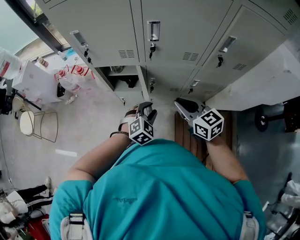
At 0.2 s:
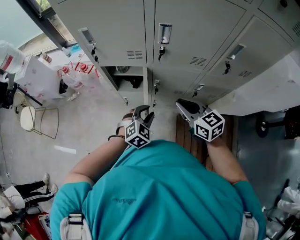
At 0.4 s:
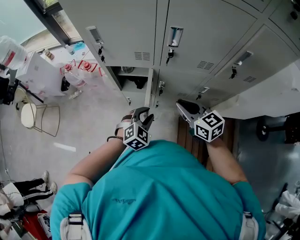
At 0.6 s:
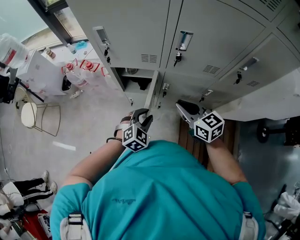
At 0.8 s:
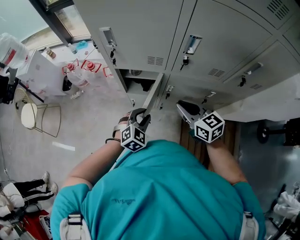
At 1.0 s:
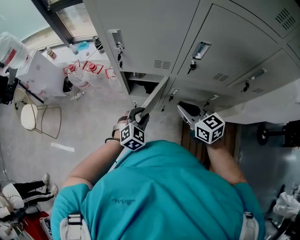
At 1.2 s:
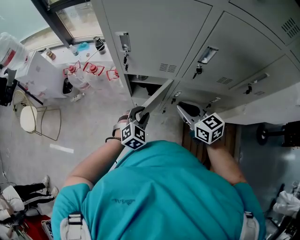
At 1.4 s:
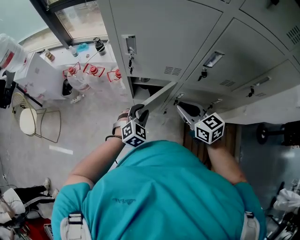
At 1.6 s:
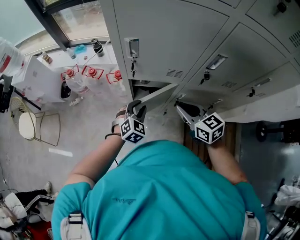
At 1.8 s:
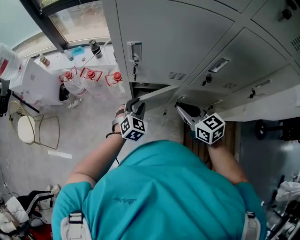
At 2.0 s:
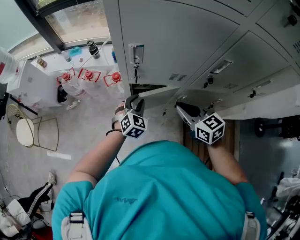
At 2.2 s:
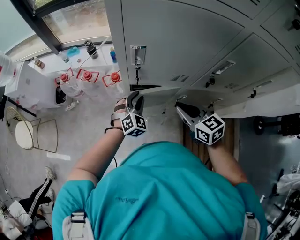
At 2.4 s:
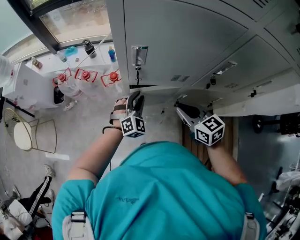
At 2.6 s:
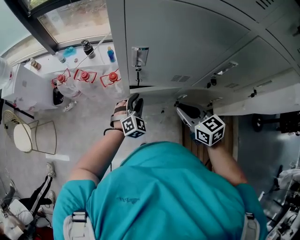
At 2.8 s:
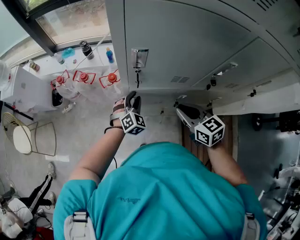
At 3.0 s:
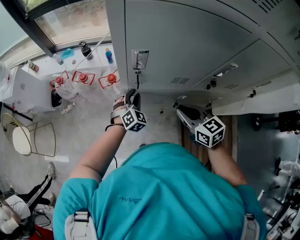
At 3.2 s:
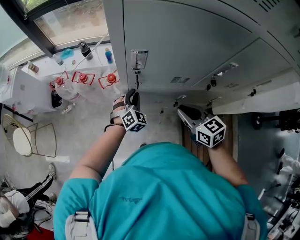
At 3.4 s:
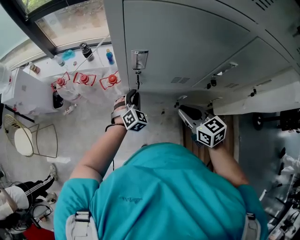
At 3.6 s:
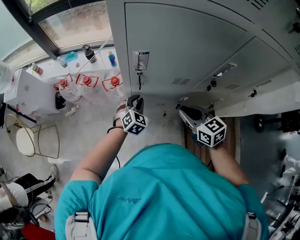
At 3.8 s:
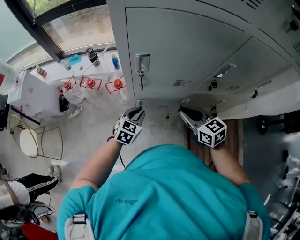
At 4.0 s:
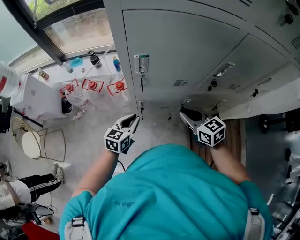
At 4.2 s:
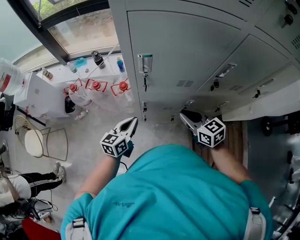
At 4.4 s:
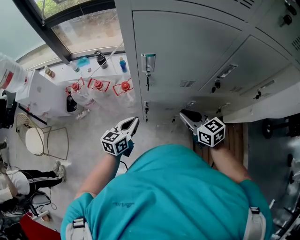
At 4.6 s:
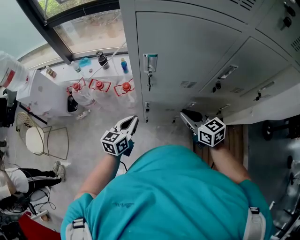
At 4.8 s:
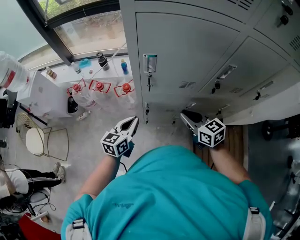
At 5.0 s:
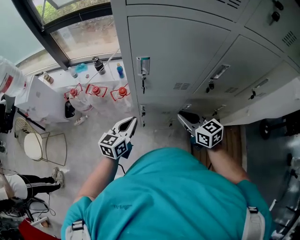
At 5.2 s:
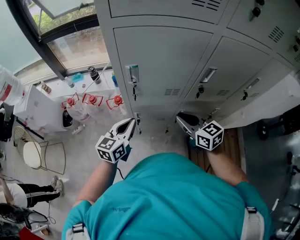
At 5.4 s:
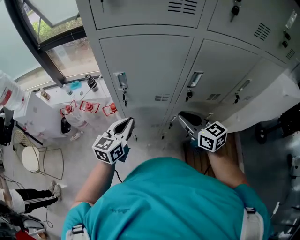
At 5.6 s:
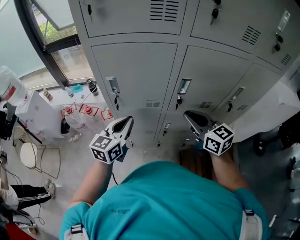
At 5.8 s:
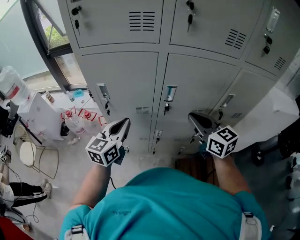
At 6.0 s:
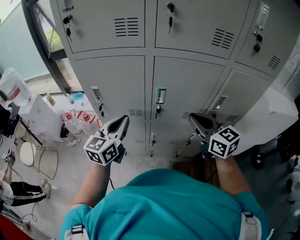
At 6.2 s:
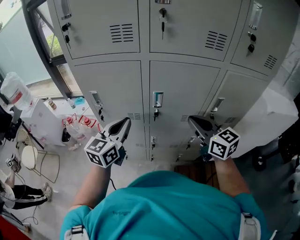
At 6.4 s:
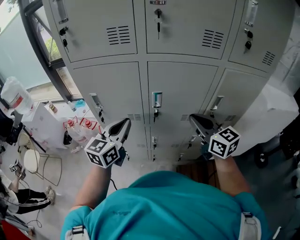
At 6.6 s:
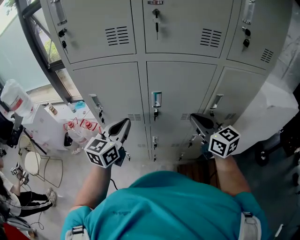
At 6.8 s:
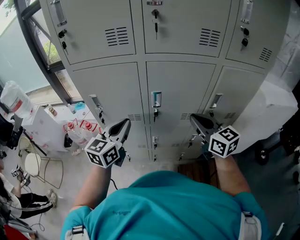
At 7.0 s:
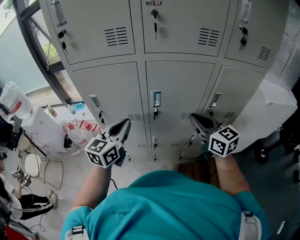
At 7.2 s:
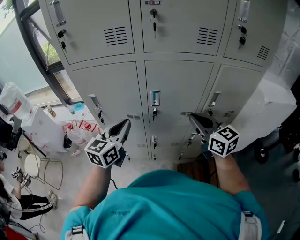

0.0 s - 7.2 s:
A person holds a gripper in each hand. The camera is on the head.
0.0 s - 1.4 s: Both grippers move to the left and forward, some 20 cm.
1.4 s - 2.8 s: The right gripper shifts by approximately 5 cm. Meanwhile the left gripper heads forward, covering approximately 15 cm.
2.8 s - 4.4 s: The left gripper travels backward, to the left and upward by approximately 15 cm, rotates around the line of its fingers by roughly 60 degrees, counterclockwise from behind, and closes.
4.4 s - 5.8 s: The left gripper goes roughly 30 cm upward and to the right, and rotates approximately 20 degrees. Meanwhile the right gripper travels to the right and upward by approximately 30 cm.
5.8 s - 7.2 s: The right gripper travels to the right by about 5 cm. The left gripper moves to the right and upward, some 10 cm.

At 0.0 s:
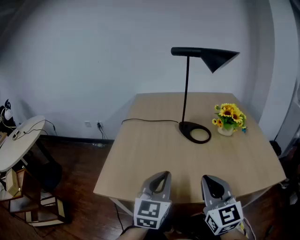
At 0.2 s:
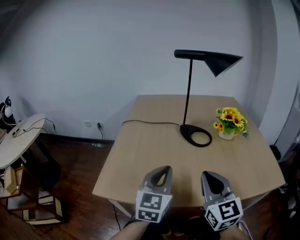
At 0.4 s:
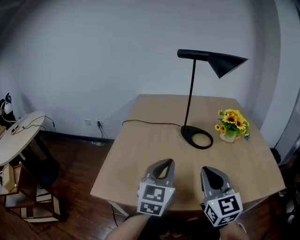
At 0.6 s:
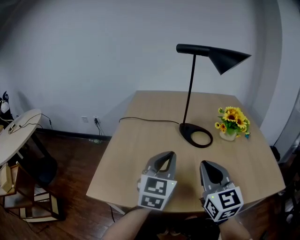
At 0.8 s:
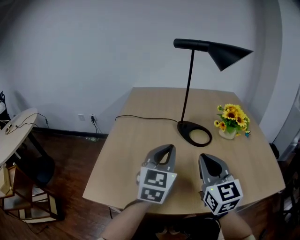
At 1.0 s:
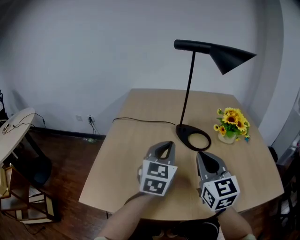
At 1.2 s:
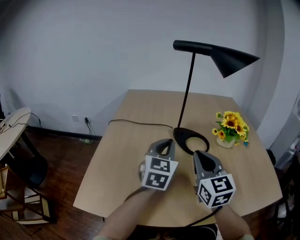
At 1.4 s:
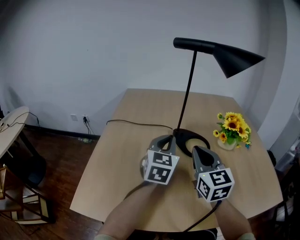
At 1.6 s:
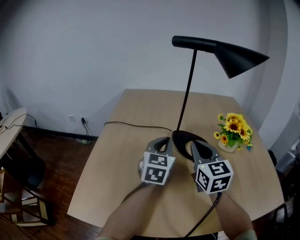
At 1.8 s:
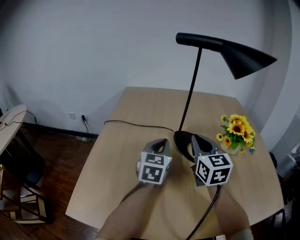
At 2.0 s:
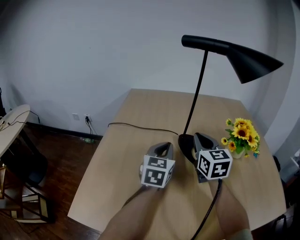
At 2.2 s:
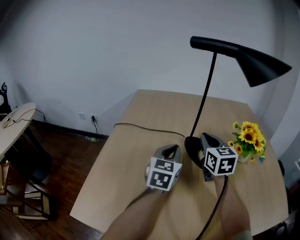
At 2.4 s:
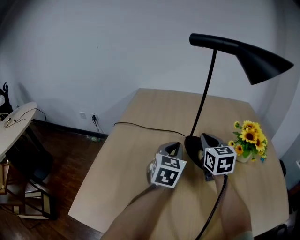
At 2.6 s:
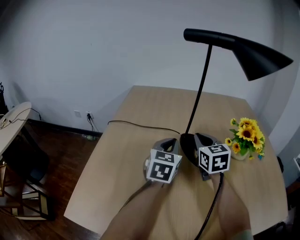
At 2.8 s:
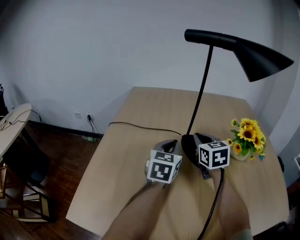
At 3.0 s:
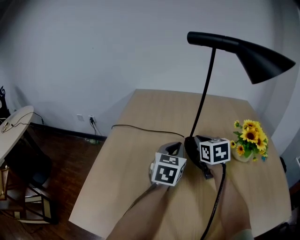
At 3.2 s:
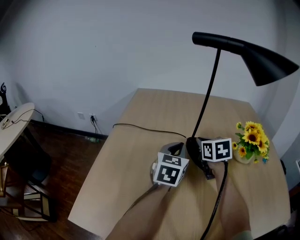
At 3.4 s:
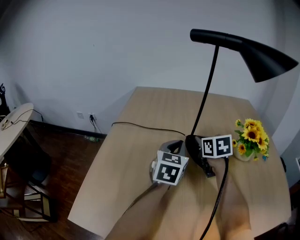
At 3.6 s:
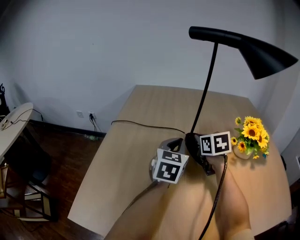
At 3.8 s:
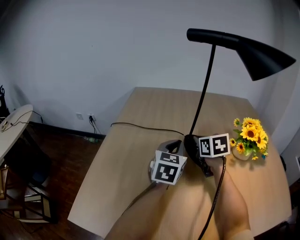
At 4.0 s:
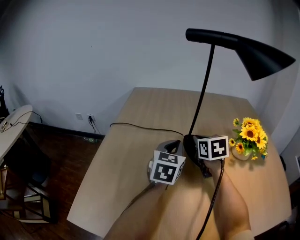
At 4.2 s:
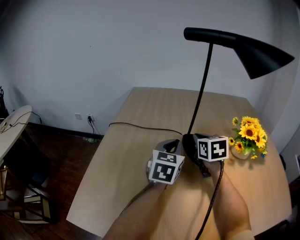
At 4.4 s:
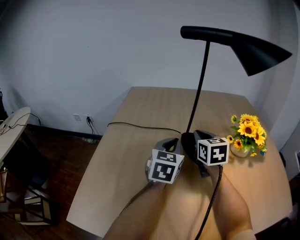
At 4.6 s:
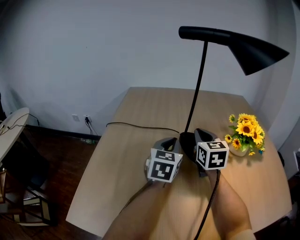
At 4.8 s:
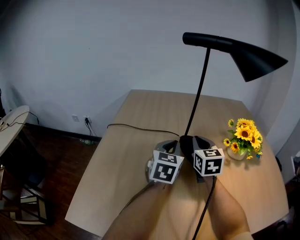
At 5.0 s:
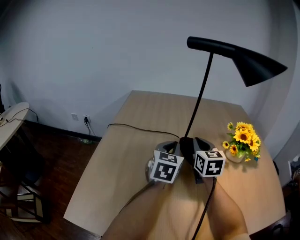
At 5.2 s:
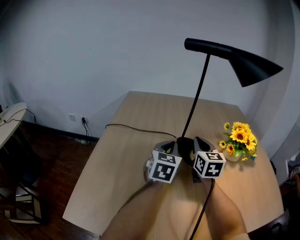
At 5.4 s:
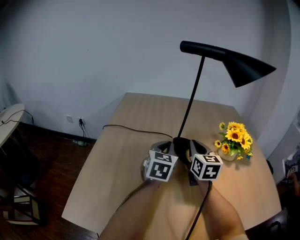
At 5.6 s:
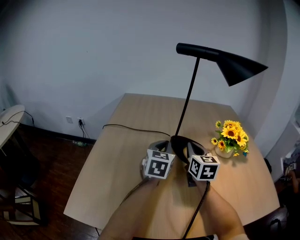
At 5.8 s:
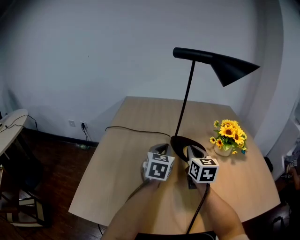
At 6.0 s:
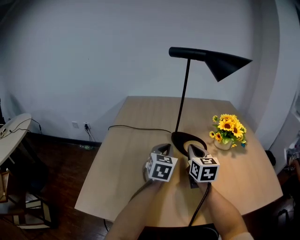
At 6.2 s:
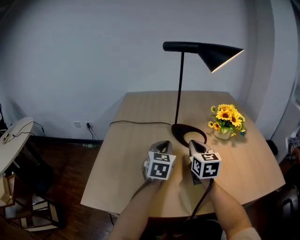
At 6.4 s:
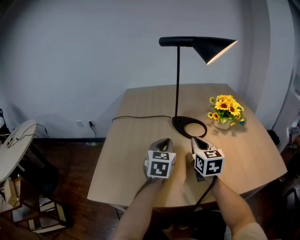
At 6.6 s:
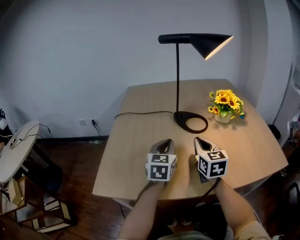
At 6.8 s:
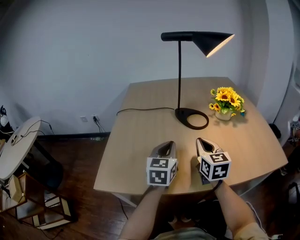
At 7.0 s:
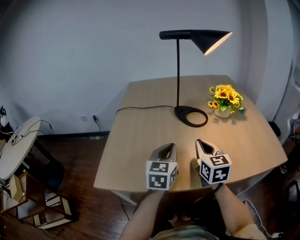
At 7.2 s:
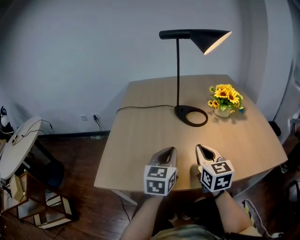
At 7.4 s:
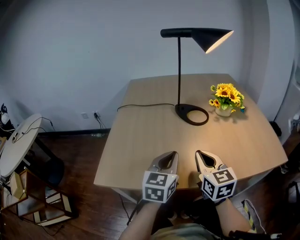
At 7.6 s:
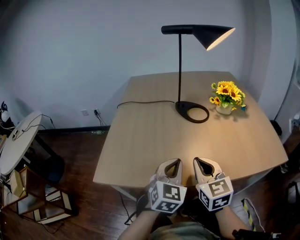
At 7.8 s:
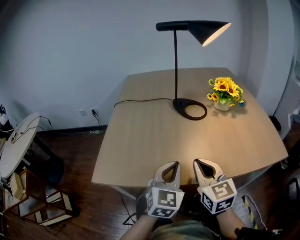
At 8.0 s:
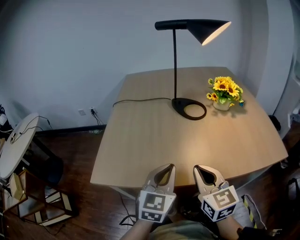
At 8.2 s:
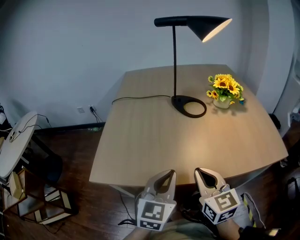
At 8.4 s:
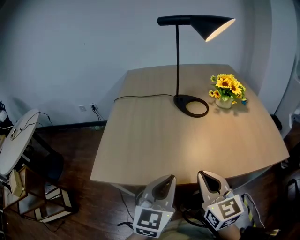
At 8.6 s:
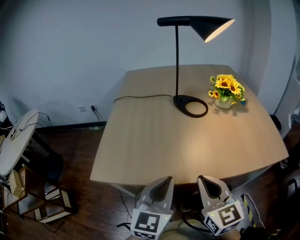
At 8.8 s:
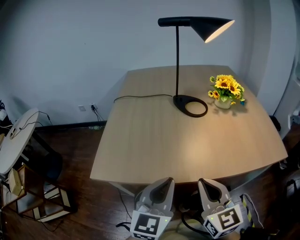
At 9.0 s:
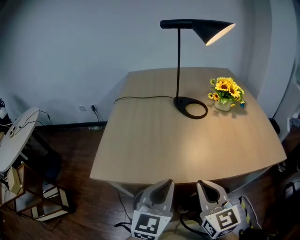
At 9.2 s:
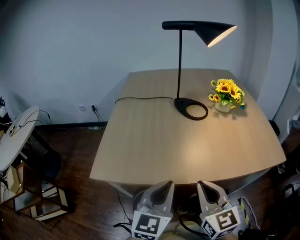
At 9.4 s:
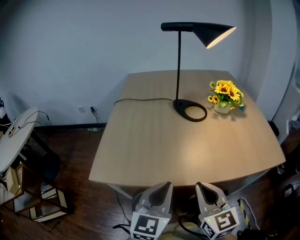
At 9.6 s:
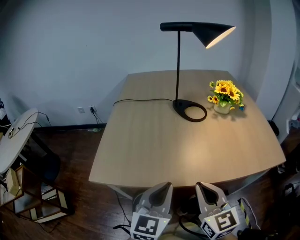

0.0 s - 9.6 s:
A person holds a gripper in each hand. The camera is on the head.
0.0 s - 1.6 s: The grippers both shift forward by approximately 25 cm.
1.6 s - 3.2 s: The right gripper moves forward and downward, roughly 15 cm, and swivels roughly 30 degrees.
4.8 s - 6.4 s: Both grippers move backward, approximately 15 cm.
6.4 s - 8.0 s: The two grippers go some 20 cm backward.
8.0 s - 9.6 s: The two grippers go some 5 cm backward.

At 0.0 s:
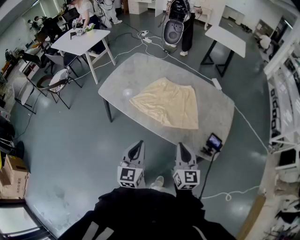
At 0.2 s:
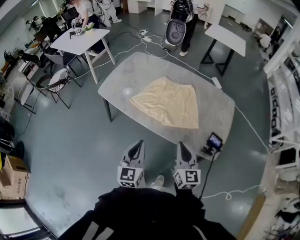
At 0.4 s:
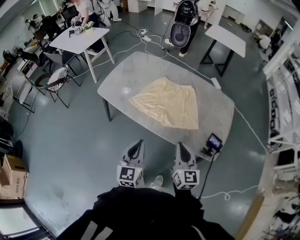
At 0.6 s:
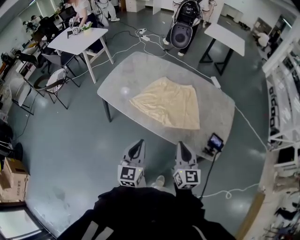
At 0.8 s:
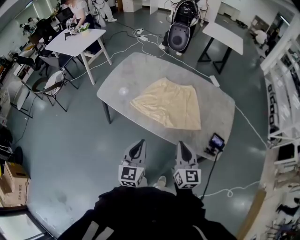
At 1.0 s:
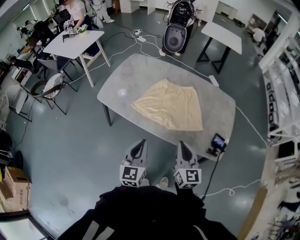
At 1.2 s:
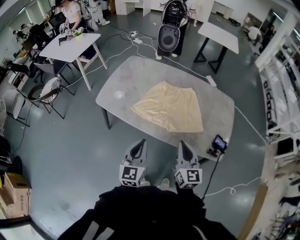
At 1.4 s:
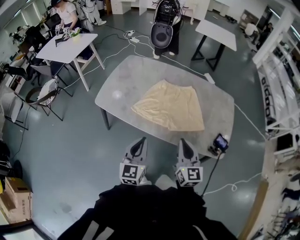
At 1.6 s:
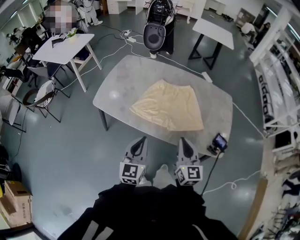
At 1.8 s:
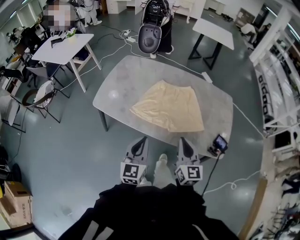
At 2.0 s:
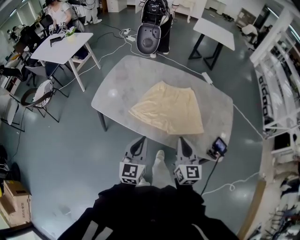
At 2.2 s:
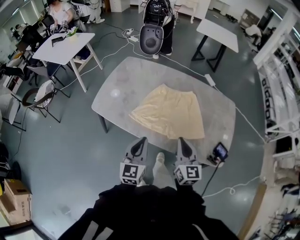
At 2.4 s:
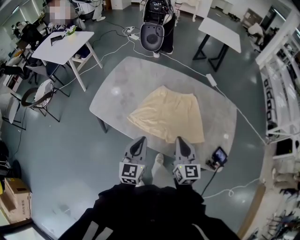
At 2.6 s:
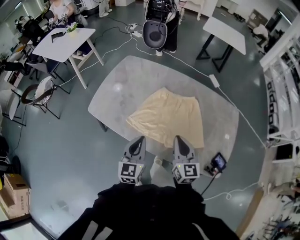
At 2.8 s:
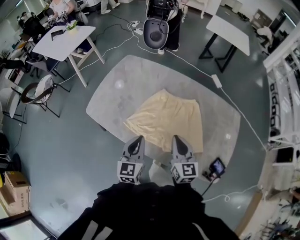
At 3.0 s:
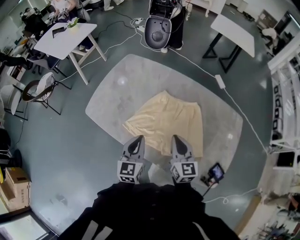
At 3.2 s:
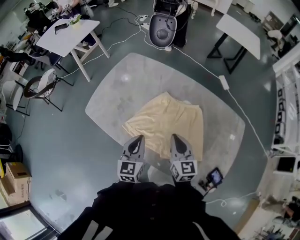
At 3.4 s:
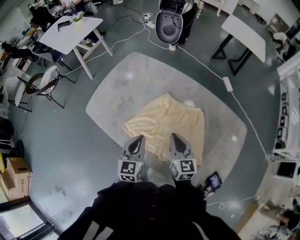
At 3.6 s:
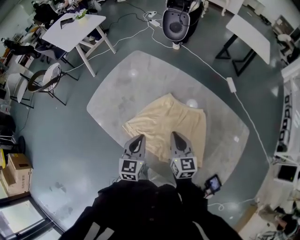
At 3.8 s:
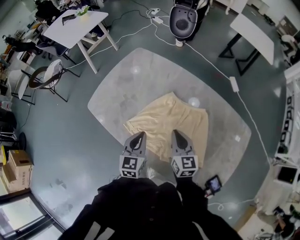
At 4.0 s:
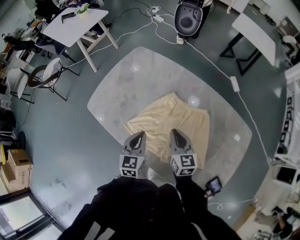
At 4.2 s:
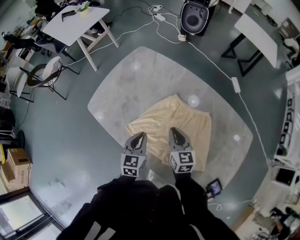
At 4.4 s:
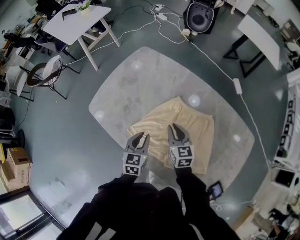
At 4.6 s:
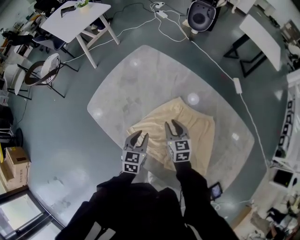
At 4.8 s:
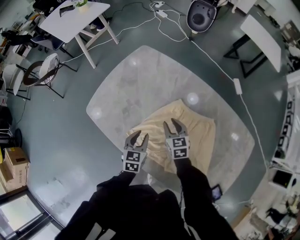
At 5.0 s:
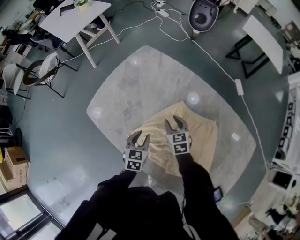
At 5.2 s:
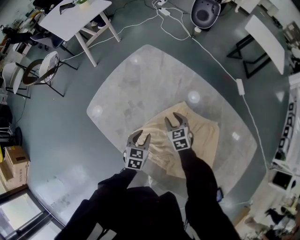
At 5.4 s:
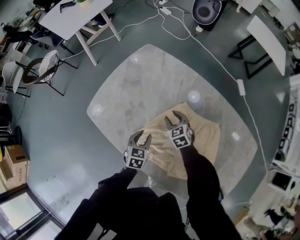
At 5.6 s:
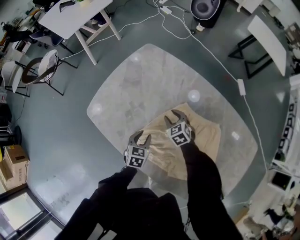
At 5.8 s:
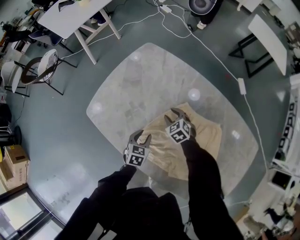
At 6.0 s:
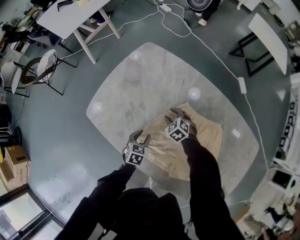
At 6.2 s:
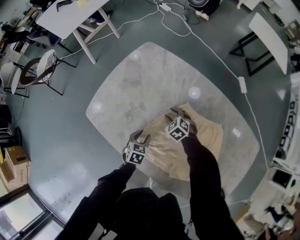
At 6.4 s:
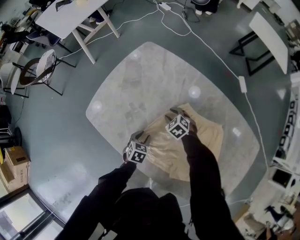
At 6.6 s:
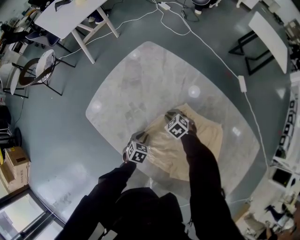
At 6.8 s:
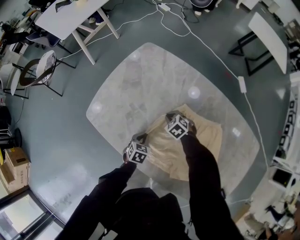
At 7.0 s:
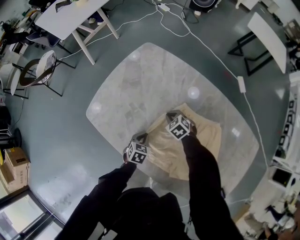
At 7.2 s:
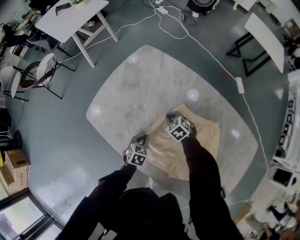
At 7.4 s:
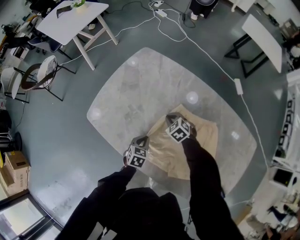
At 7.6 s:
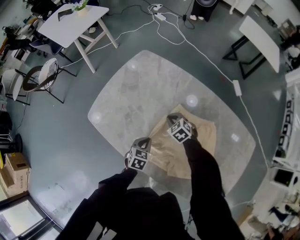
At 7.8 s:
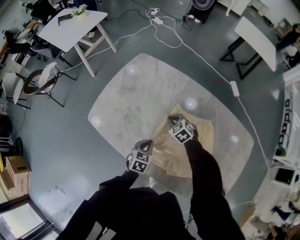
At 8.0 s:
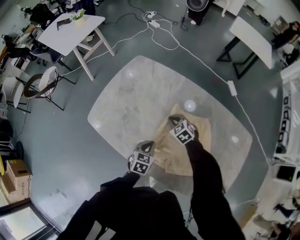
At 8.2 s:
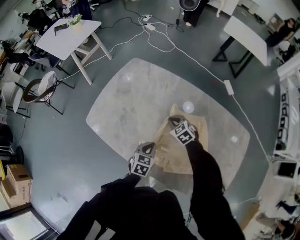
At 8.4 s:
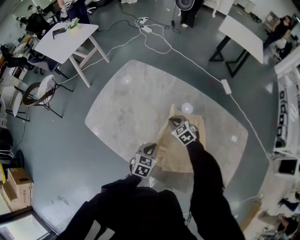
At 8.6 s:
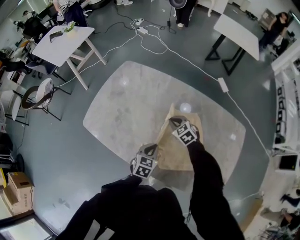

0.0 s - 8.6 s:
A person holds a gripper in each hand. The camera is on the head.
0.0 s - 1.4 s: The left gripper moves forward and to the left, some 10 cm. Meanwhile the right gripper heads to the left and forward, covering some 10 cm.
1.4 s - 2.8 s: The two grippers go roughly 20 cm forward.
2.8 s - 4.4 s: Both grippers travel together forward and downward, approximately 20 cm. The right gripper changes its angle by about 20 degrees.
4.4 s - 5.8 s: Both grippers move downward and forward, roughly 15 cm. The right gripper turns by roughly 40 degrees, and opens up.
5.8 s - 7.2 s: The right gripper closes up. The left gripper closes its fingers.
7.2 s - 8.6 s: The two grippers go roughly 20 cm upward, to the right and backward.
